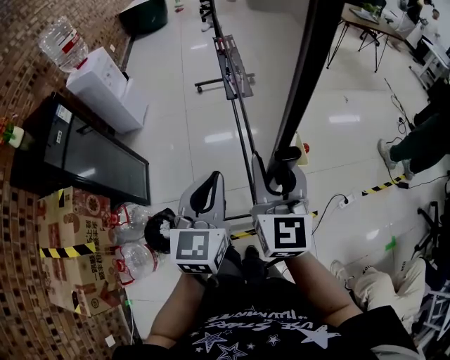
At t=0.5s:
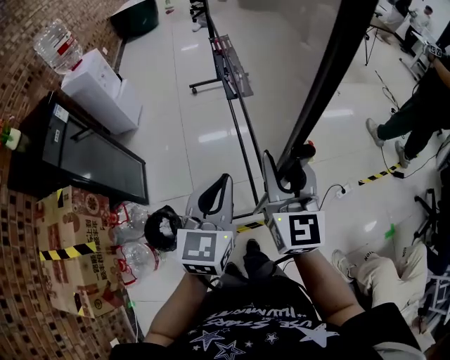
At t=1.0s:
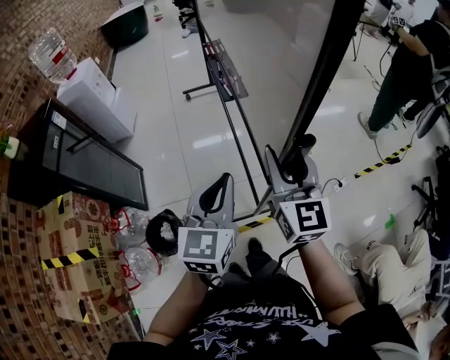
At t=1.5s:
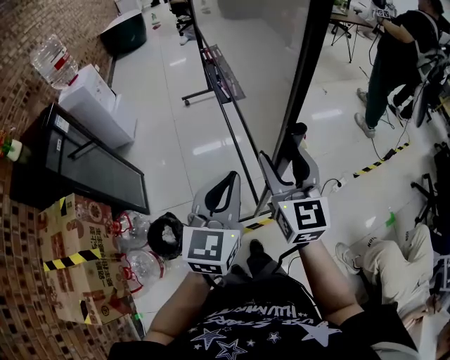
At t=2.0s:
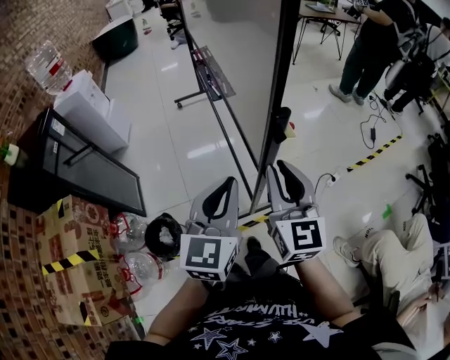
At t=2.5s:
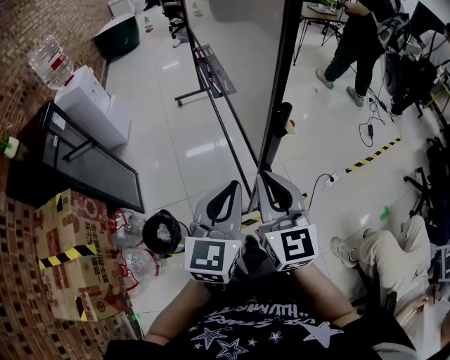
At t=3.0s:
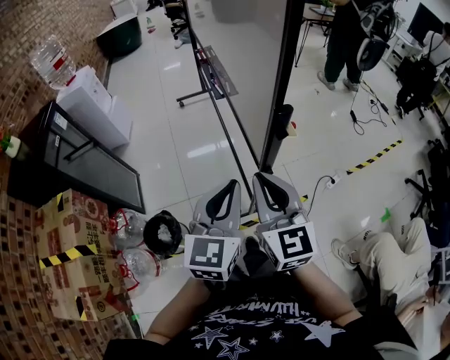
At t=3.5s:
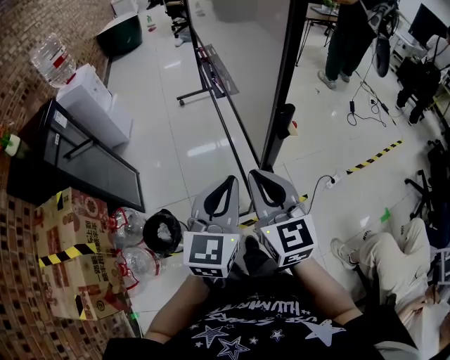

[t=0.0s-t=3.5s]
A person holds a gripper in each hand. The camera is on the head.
t=0.0s to t=2.0s: The grippers both shift backward by roughly 10 cm. The right gripper opens, then closes once more.
t=2.0s to t=3.5s: The right gripper shifts roughly 5 cm to the left.

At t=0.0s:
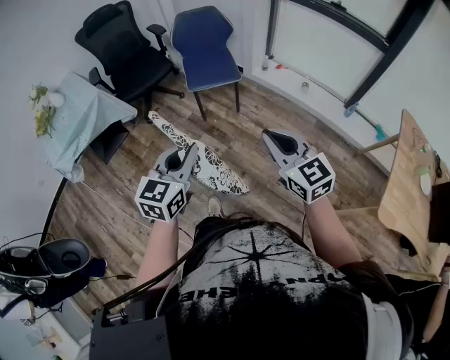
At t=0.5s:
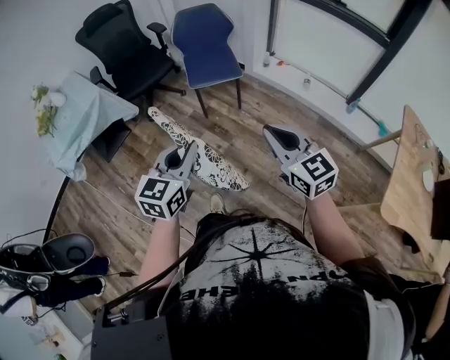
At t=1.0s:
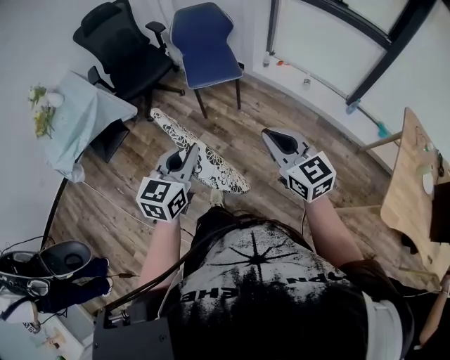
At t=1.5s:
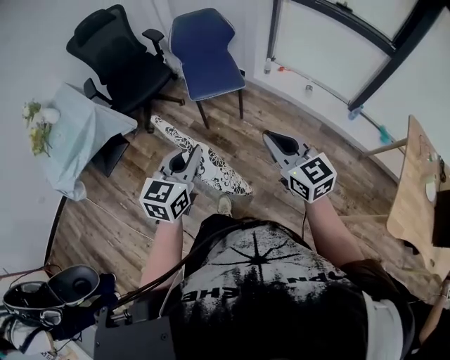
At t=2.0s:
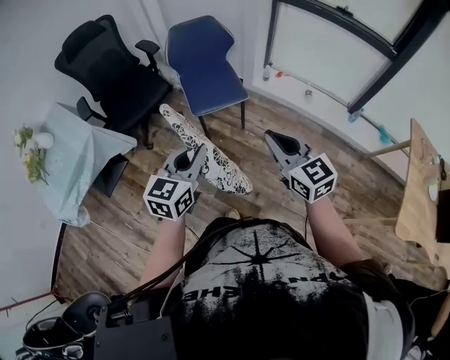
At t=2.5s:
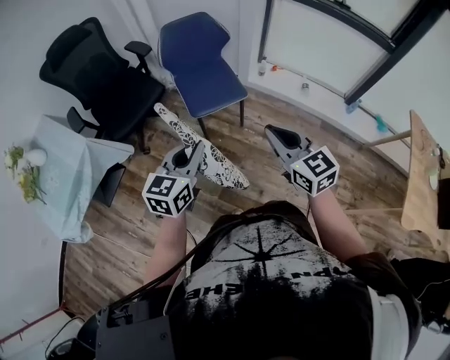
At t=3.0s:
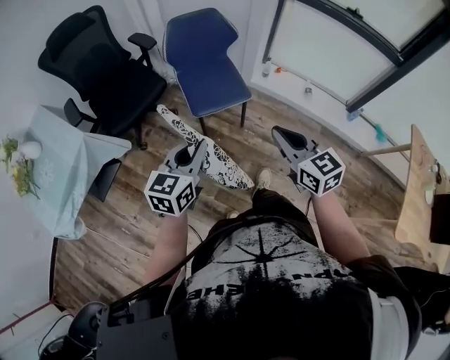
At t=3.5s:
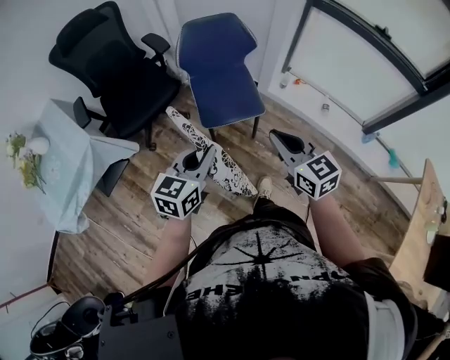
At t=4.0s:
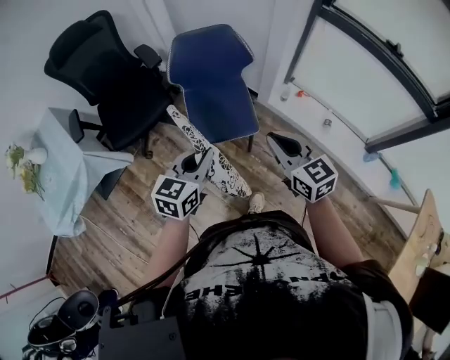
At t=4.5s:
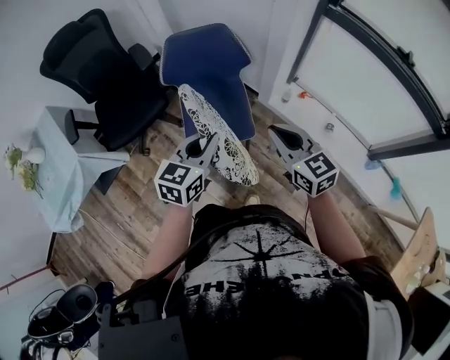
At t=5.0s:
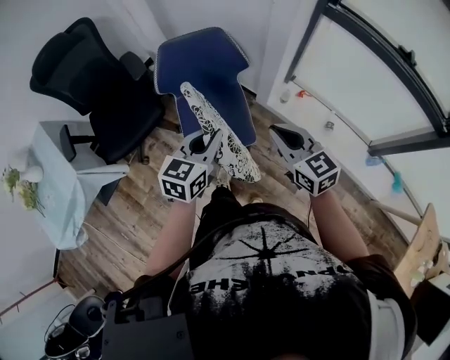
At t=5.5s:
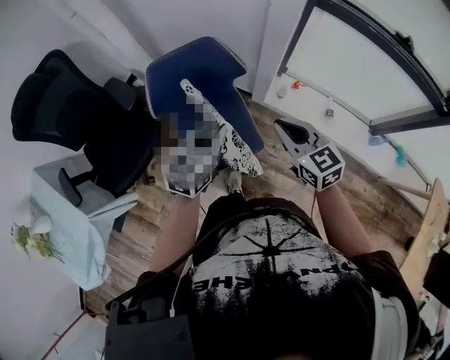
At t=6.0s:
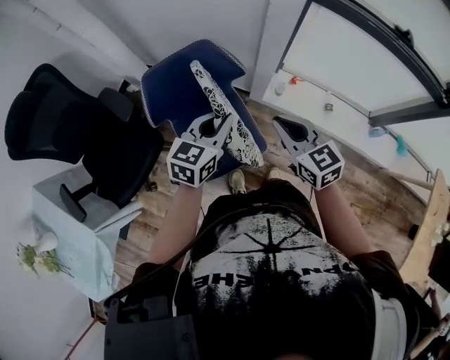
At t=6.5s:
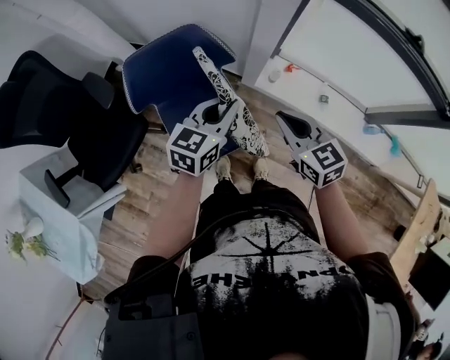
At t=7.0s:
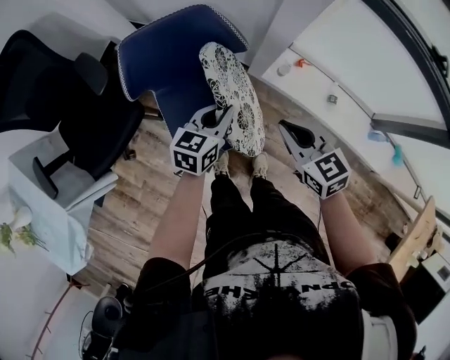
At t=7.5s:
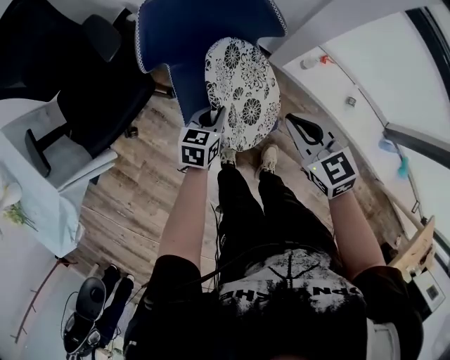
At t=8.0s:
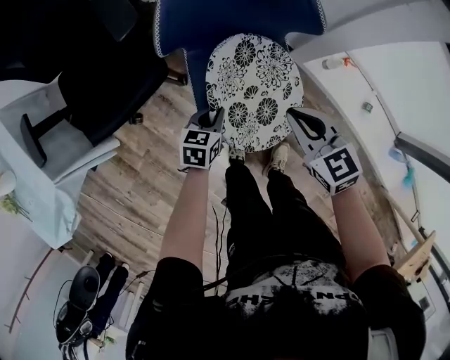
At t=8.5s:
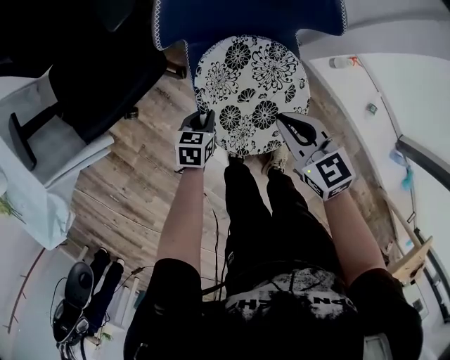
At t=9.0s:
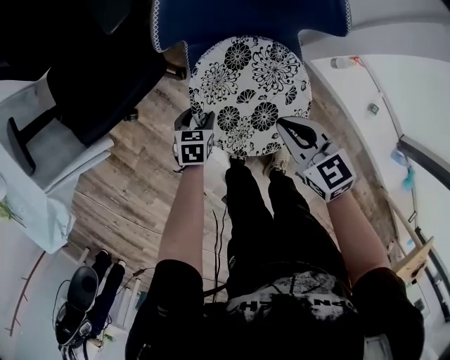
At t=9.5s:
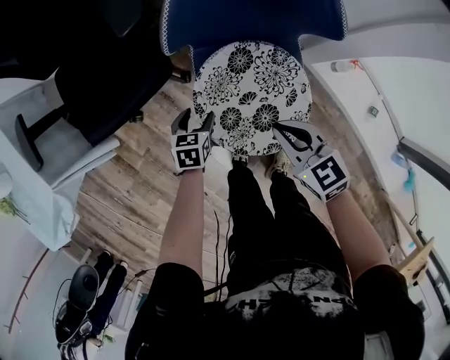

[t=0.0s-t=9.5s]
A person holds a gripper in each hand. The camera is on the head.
t=0.0s to t=2.0s: The right gripper is displaced forward and to the left by some 25 cm; the left gripper moves forward, roughly 25 cm.
t=2.0s to t=4.0s: Both grippers travel together forward, some 30 cm.
t=4.0s to t=5.5s: Both grippers travel together forward, approximately 25 cm.
t=5.5s to t=7.5s: The right gripper goes about 15 cm downward; the left gripper goes approximately 30 cm downward, and swivels some 20 degrees.
t=7.5s to t=9.5s: The grippers both shift to the left and downward by roughly 20 cm. The left gripper changes its angle by about 20 degrees, and opens its fingers.

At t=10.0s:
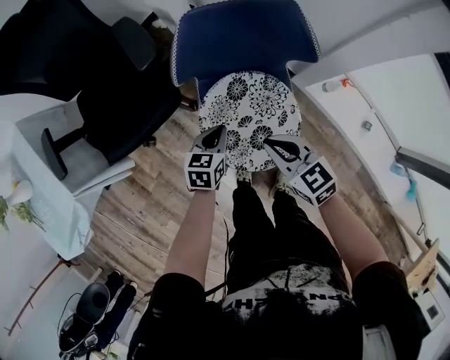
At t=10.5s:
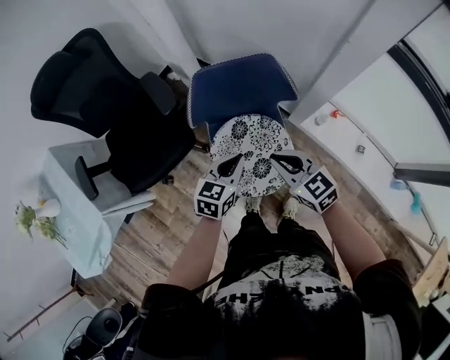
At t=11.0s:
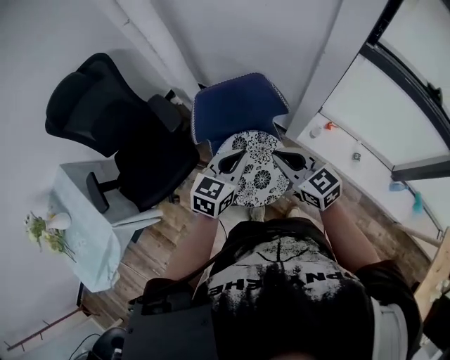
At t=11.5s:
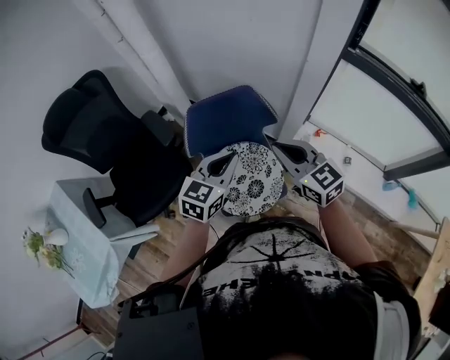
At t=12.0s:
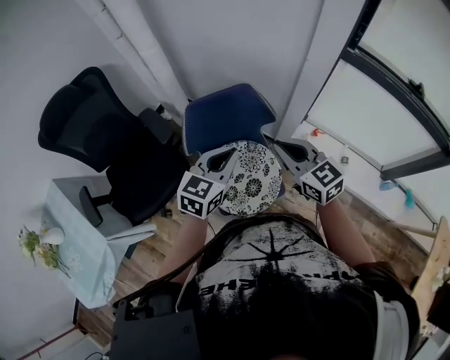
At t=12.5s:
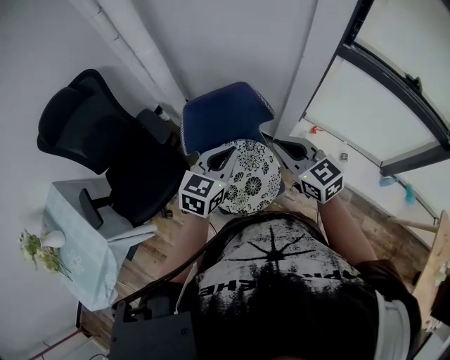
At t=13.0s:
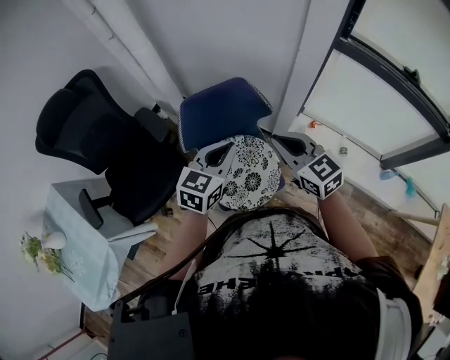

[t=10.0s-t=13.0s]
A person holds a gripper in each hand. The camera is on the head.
t=10.0s to t=11.5s: Both grippers move upward, roughly 30 cm. The left gripper turns by some 40 degrees; the right gripper swivels some 30 degrees.
t=11.5s to t=13.0s: The grippers move only a little.

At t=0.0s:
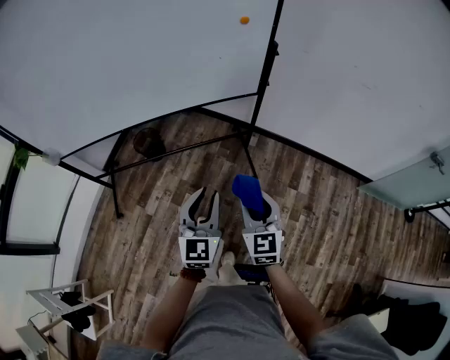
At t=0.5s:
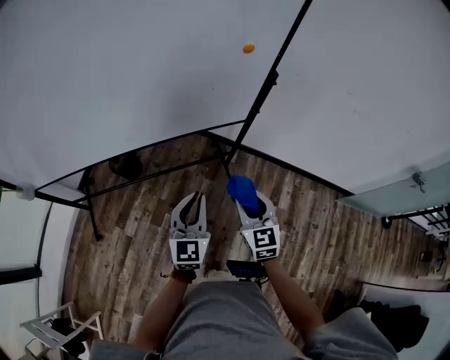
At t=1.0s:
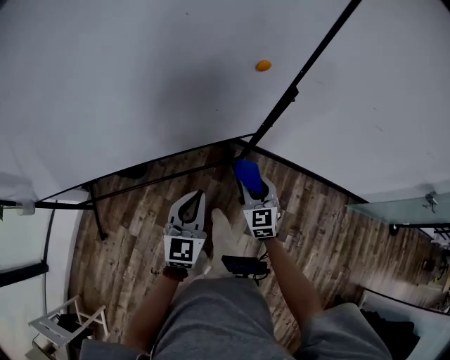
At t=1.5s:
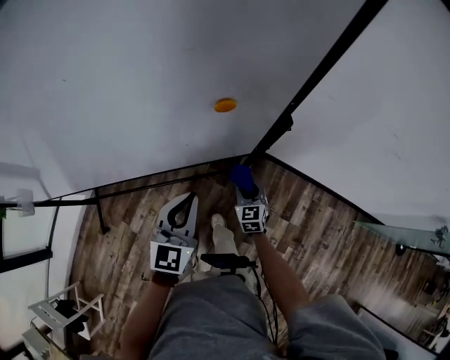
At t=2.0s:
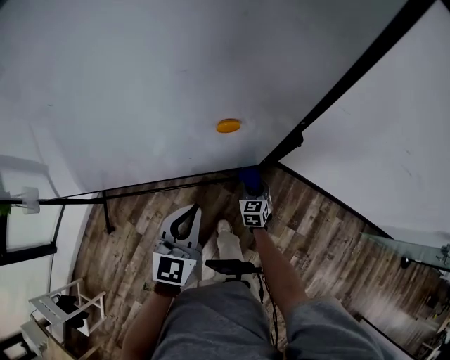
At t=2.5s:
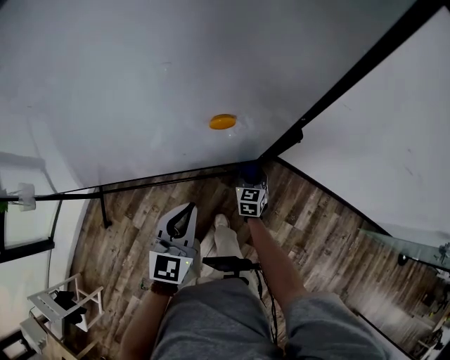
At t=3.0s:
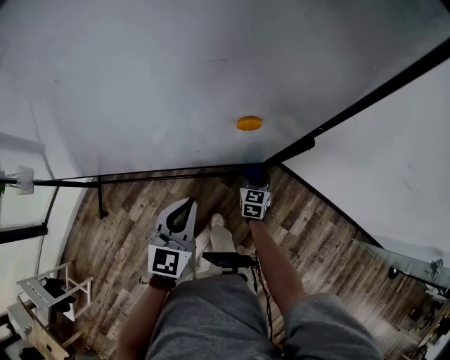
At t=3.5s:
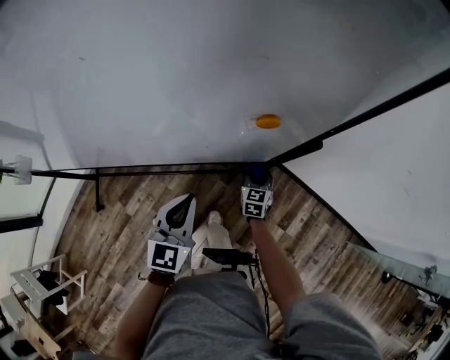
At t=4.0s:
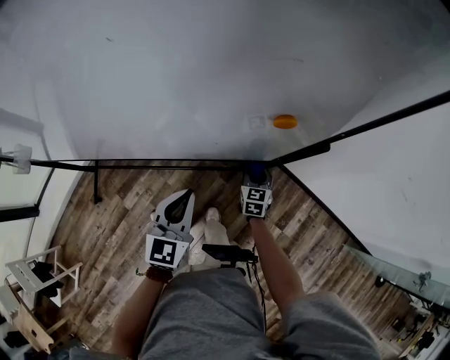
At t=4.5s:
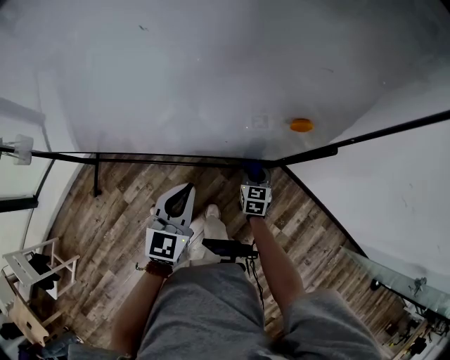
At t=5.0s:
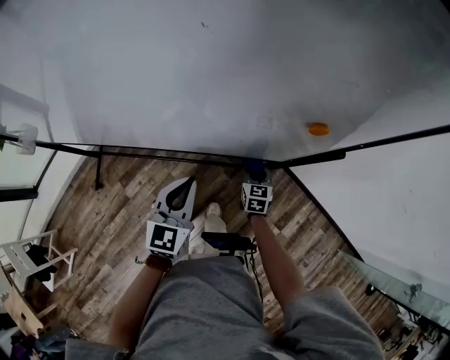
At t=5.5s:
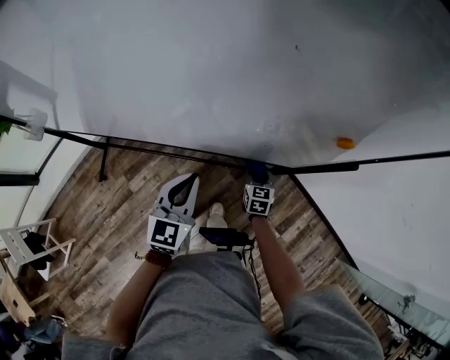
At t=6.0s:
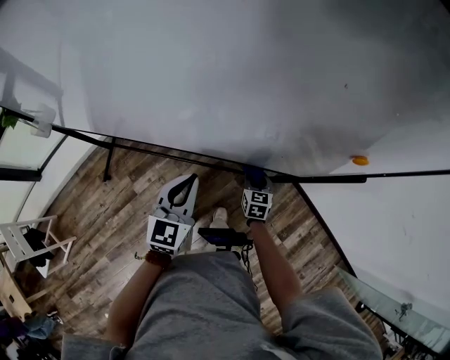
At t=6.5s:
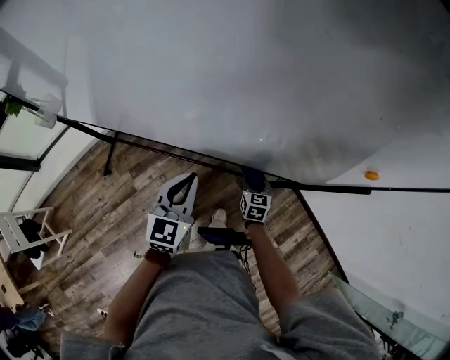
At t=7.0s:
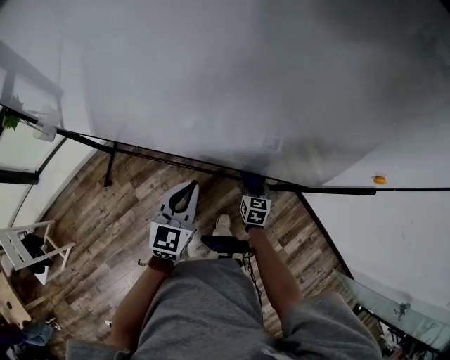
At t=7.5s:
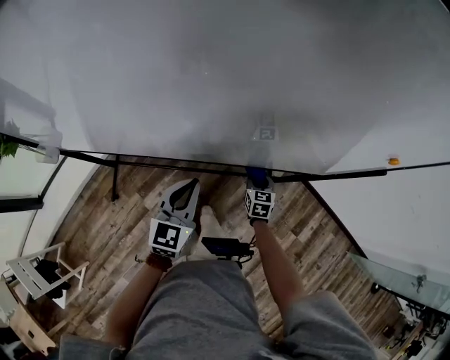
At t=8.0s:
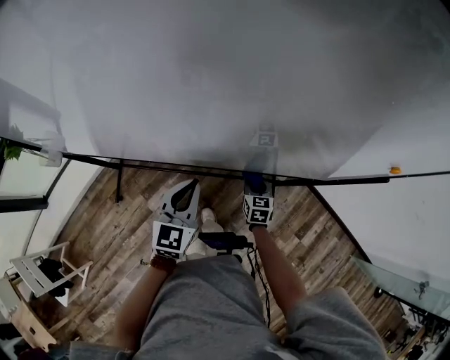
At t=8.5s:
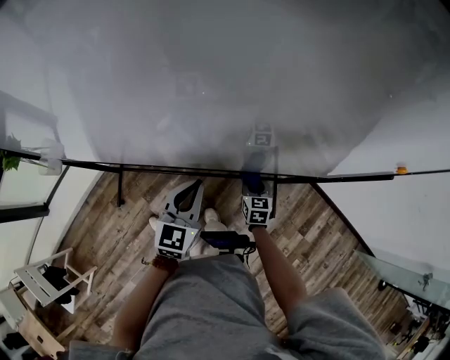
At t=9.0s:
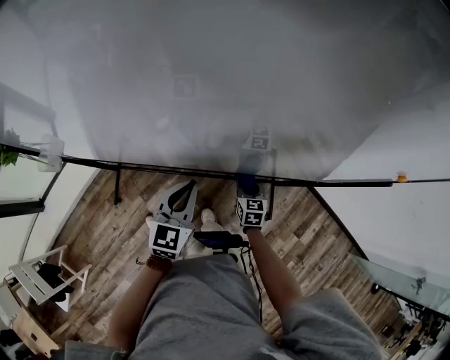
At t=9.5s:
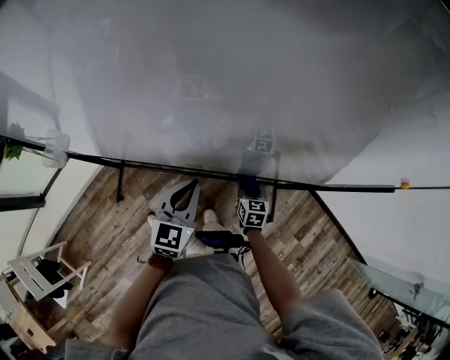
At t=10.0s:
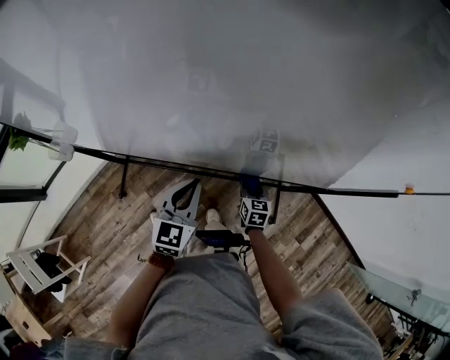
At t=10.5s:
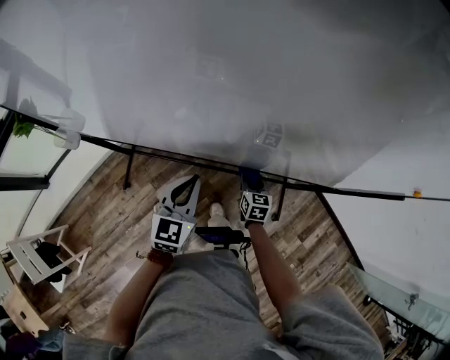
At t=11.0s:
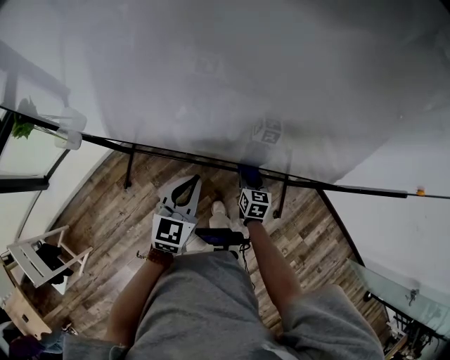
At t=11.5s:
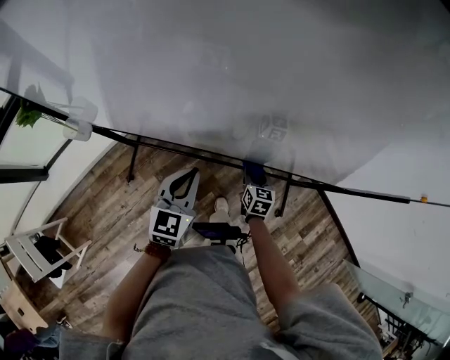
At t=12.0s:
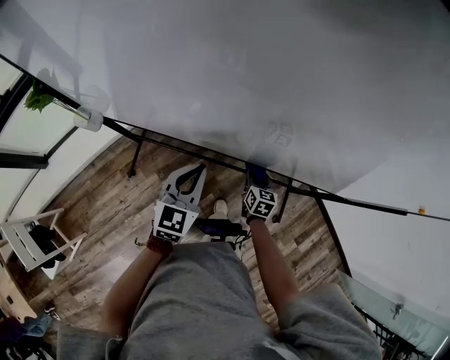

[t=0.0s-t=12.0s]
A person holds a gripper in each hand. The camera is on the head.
t=0.0s to t=2.0s: The right gripper travels forward and downward by approximately 60 cm; the left gripper travels forward by approximately 35 cm.
t=2.0s to t=4.0s: The left gripper moves roughly 5 cm.
t=4.0s to t=6.0s: Both grippers travel together to the left, approximately 15 cm.
t=6.0s to t=8.0s: Both grippers move to the left, some 10 cm.
t=8.0s to t=10.0s: Both grippers move to the left, roughly 10 cm.
t=10.0s to t=12.0s: The grippers both shift to the left by about 10 cm.
